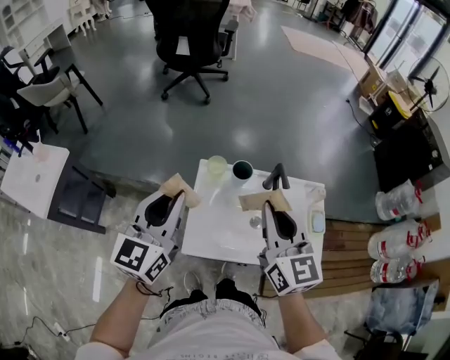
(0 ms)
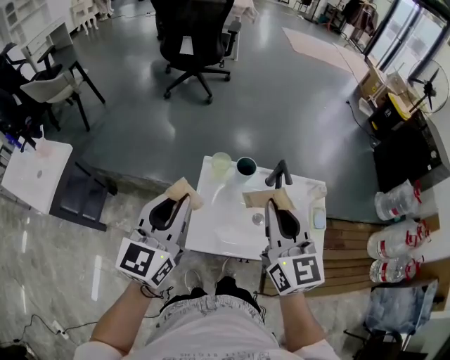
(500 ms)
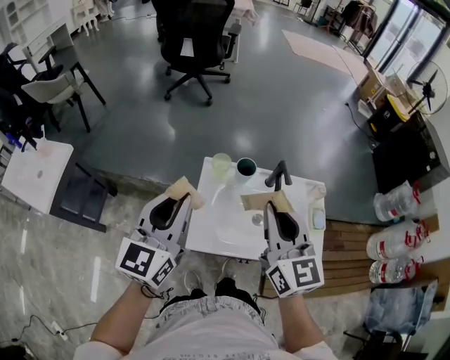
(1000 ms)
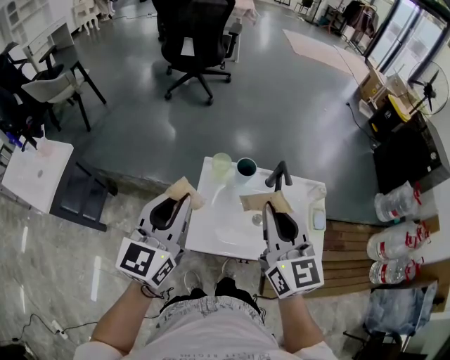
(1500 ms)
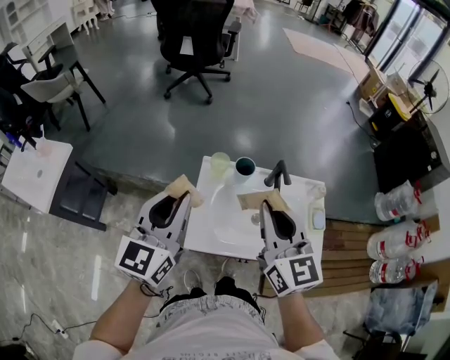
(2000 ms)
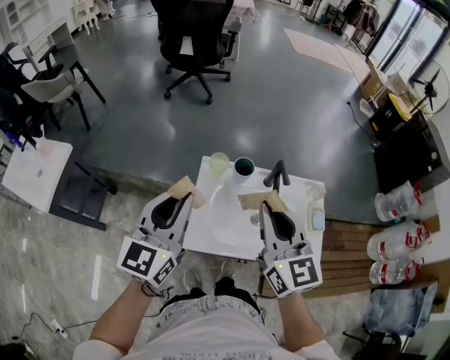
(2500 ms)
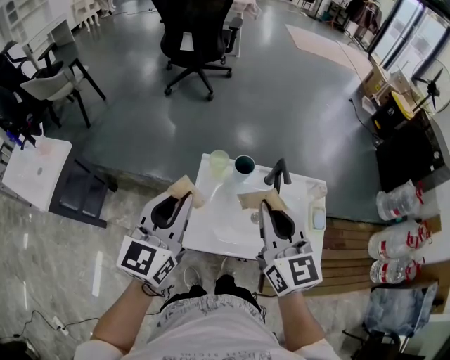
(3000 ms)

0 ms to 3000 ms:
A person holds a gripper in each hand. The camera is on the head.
0 ms to 3000 ms: The grippers make only small movements.

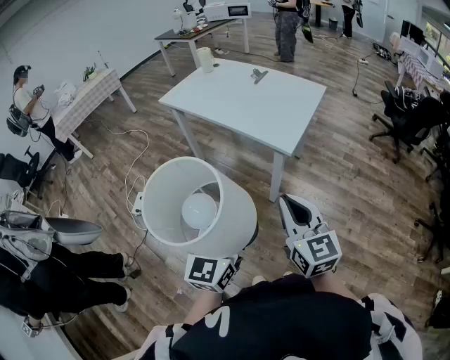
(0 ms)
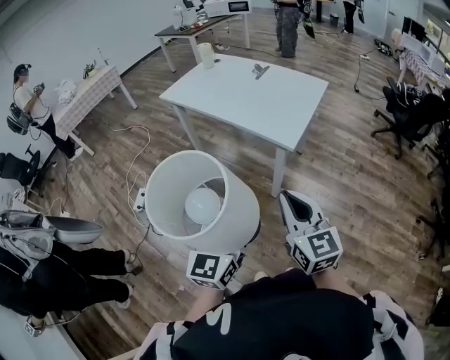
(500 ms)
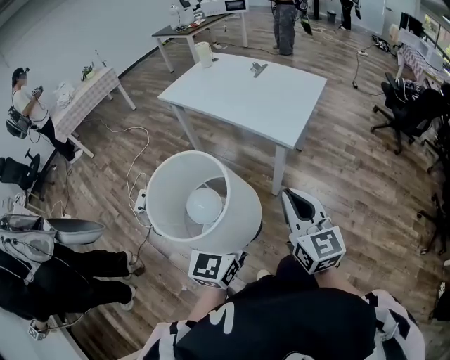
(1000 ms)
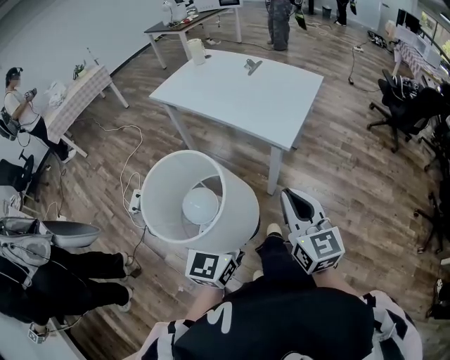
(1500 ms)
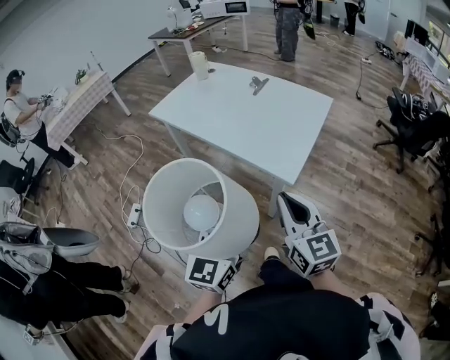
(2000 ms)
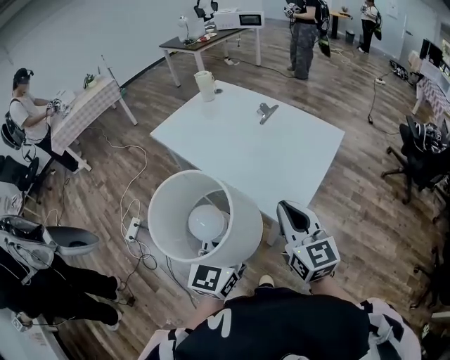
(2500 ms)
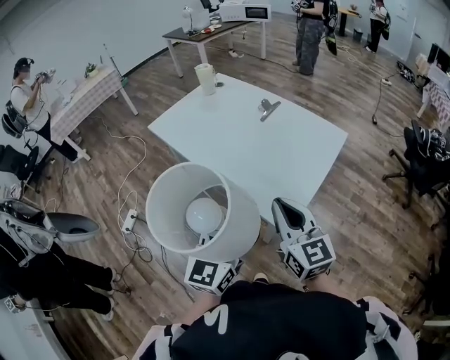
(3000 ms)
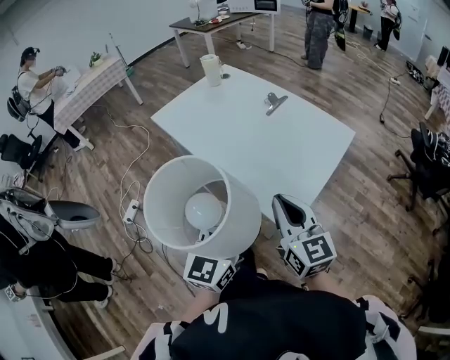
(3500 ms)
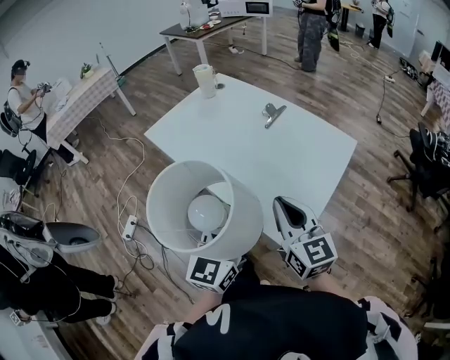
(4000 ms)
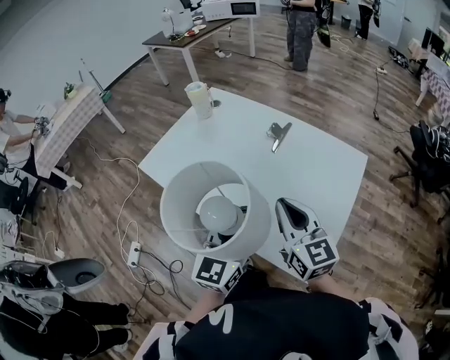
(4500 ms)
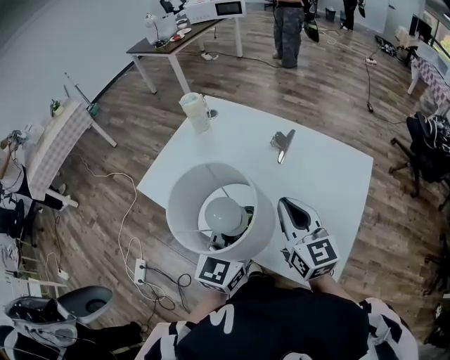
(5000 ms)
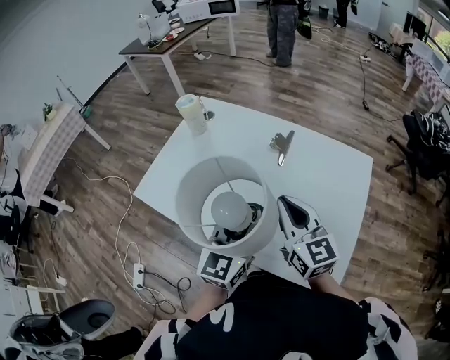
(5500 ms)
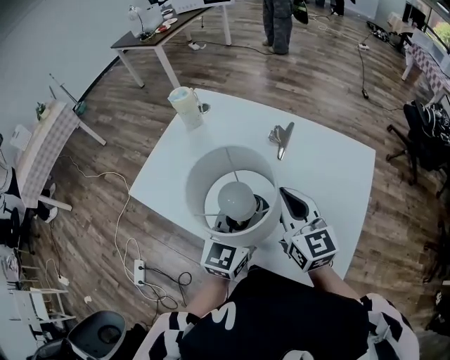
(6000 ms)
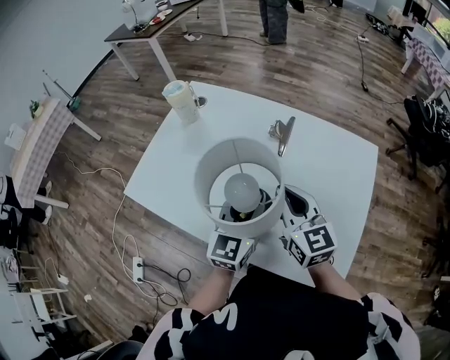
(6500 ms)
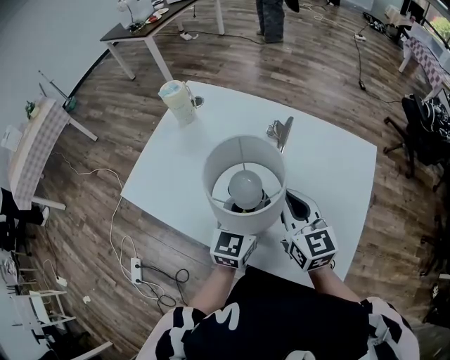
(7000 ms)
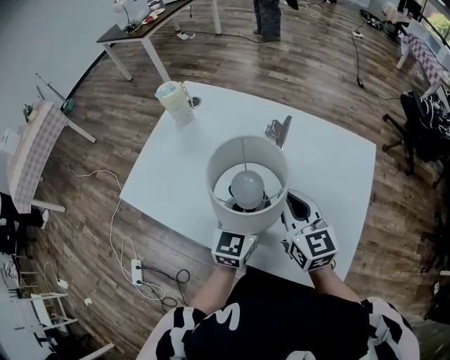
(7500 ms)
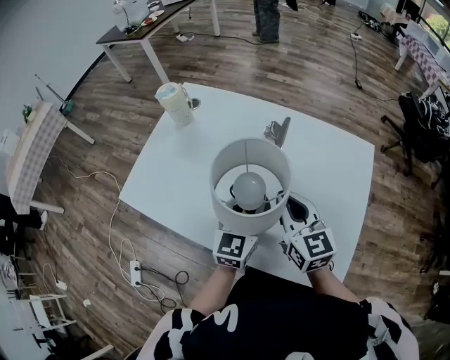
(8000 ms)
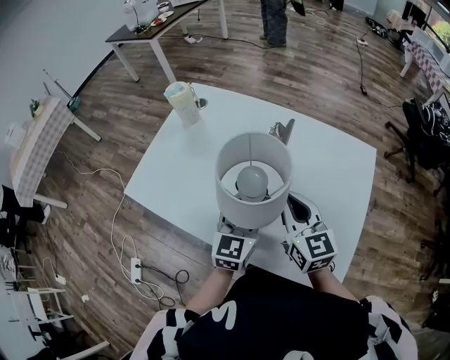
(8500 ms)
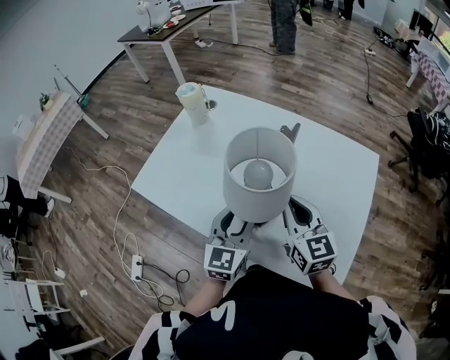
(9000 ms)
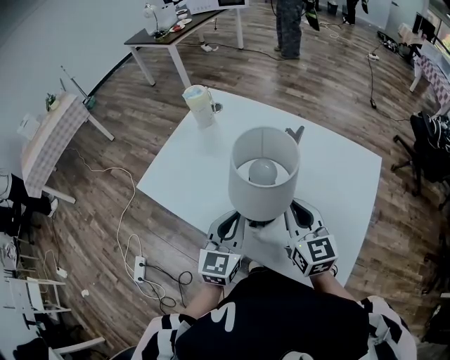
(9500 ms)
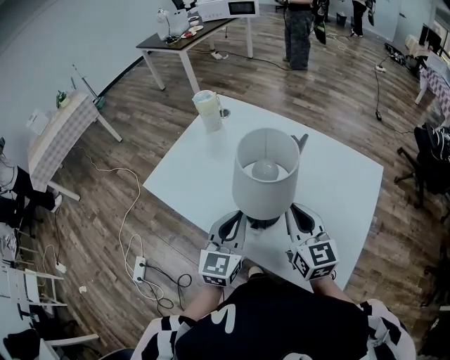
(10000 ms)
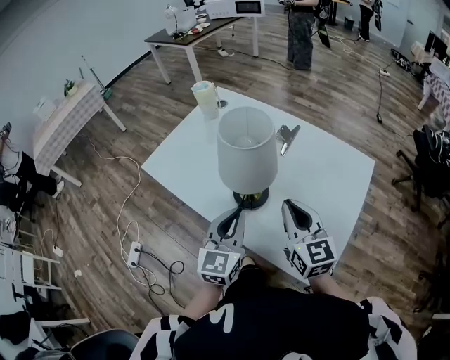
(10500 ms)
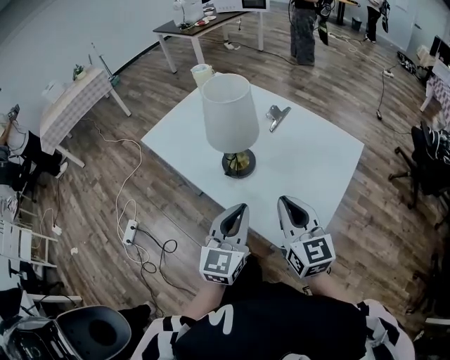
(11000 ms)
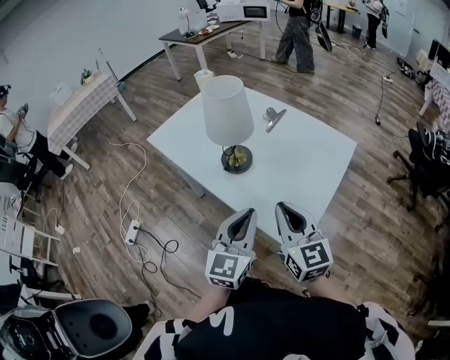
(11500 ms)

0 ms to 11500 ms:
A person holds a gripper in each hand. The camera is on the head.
0 ms to 2000 ms: Both grippers travel together forward, approximately 15 cm.
2000 ms to 4000 ms: The grippers both shift forward by some 25 cm.
4000 ms to 6000 ms: The left gripper heads forward, covering roughly 25 cm. Meanwhile the right gripper heads forward and to the left, covering about 25 cm.
6000 ms to 7500 ms: The left gripper moves downward, some 5 cm.
7500 ms to 9500 ms: The left gripper goes roughly 10 cm to the left and backward.
9500 ms to 11500 ms: The right gripper goes roughly 25 cm backward, while the left gripper is displaced backward and to the right by about 25 cm.

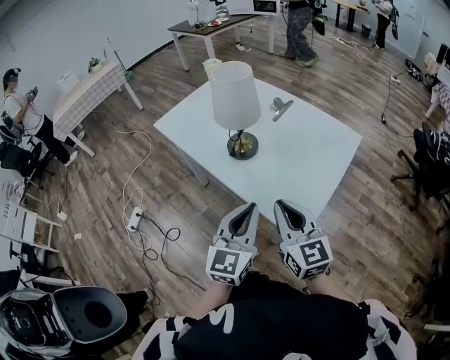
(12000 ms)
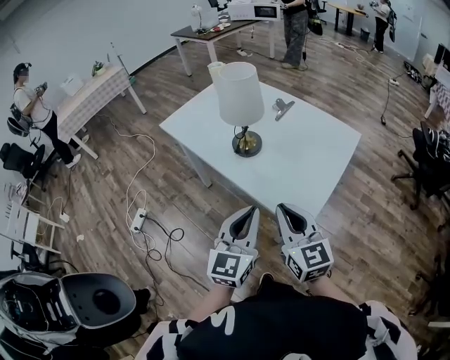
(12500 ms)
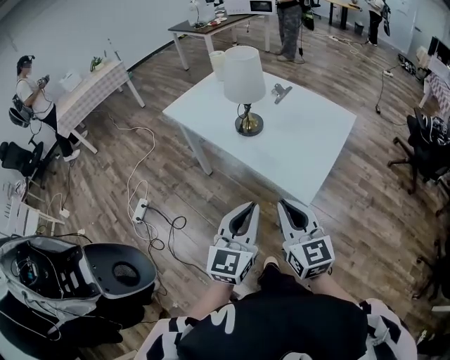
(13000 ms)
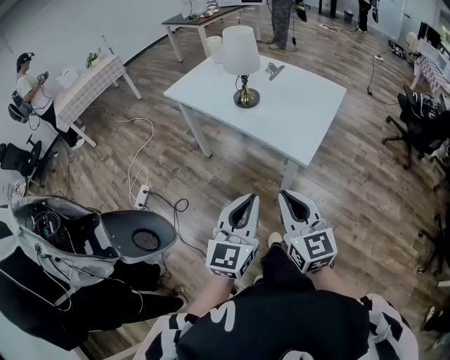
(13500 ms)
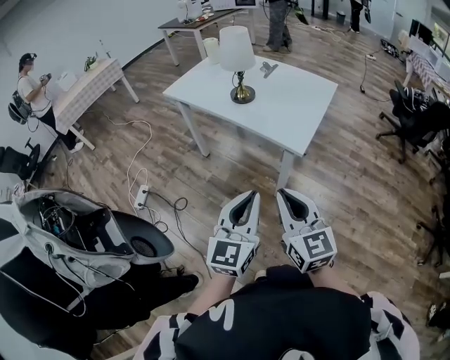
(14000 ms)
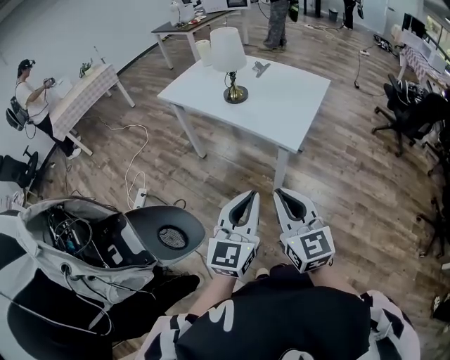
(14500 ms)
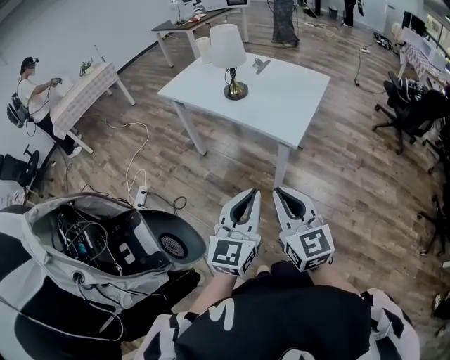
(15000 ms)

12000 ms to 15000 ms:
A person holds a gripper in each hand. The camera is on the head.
12000 ms to 13500 ms: Both grippers move backward, some 25 cm.
13500 ms to 15000 ms: Both grippers travel together backward, roughly 5 cm.

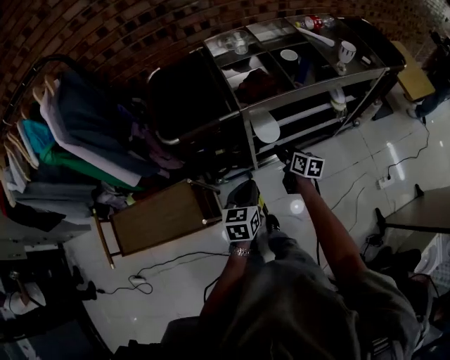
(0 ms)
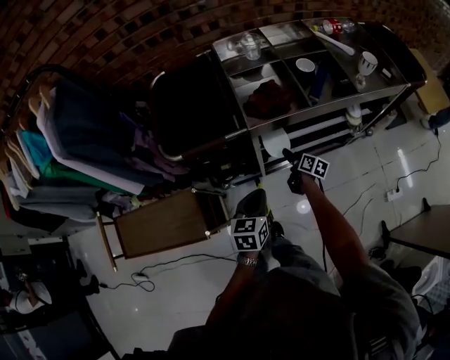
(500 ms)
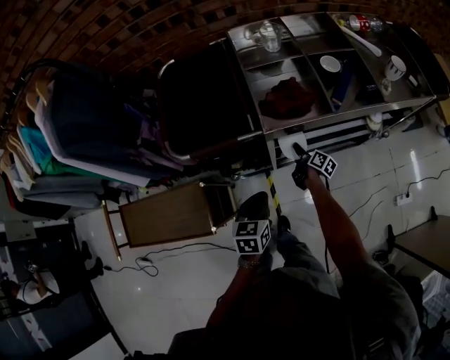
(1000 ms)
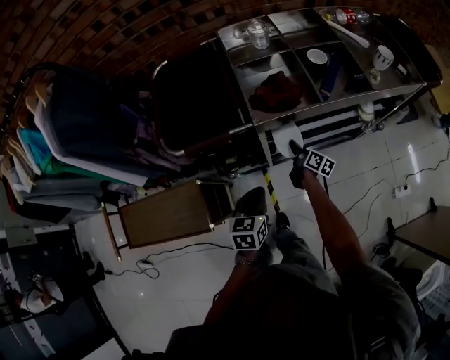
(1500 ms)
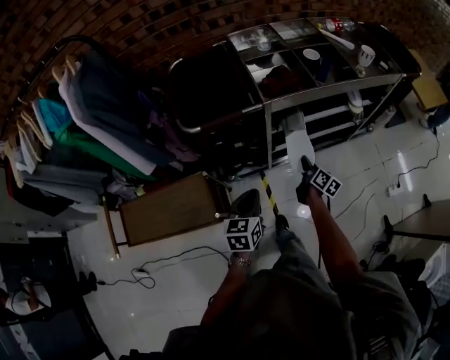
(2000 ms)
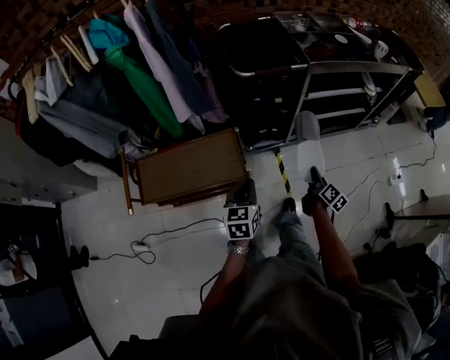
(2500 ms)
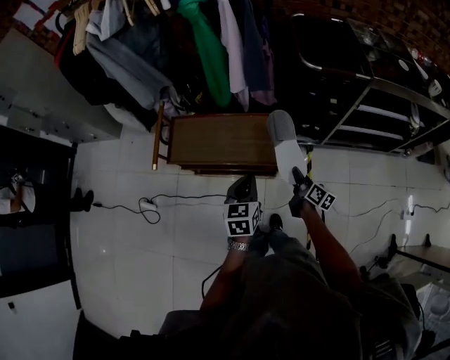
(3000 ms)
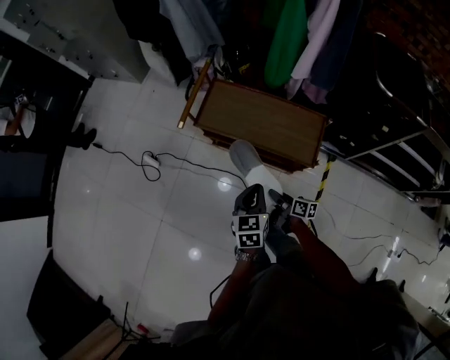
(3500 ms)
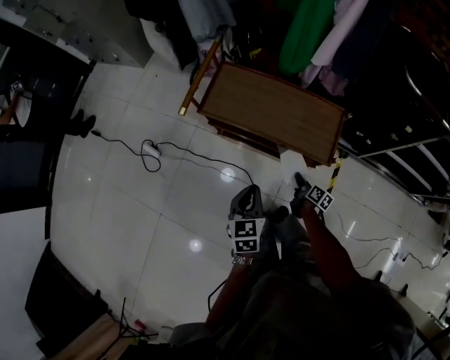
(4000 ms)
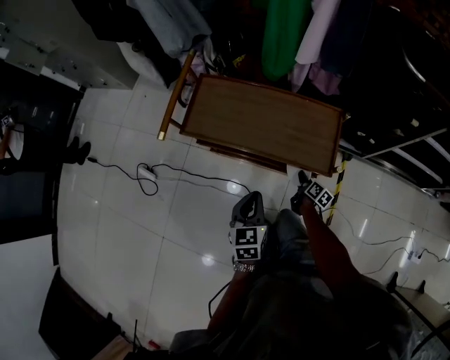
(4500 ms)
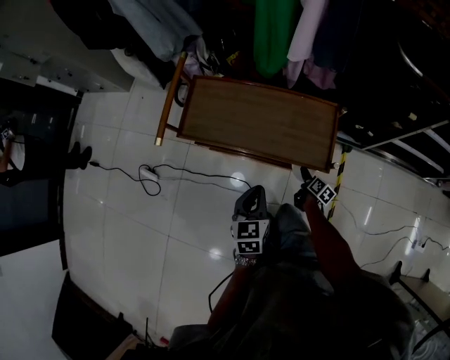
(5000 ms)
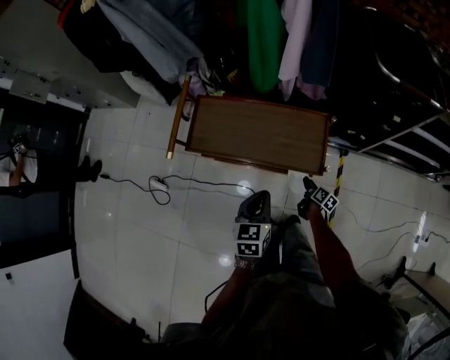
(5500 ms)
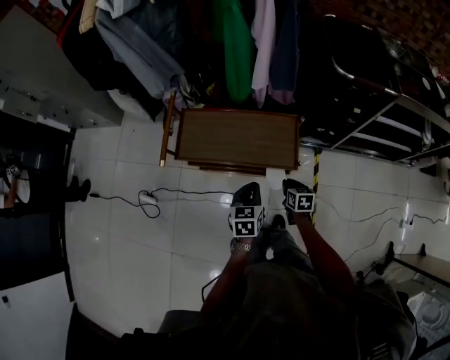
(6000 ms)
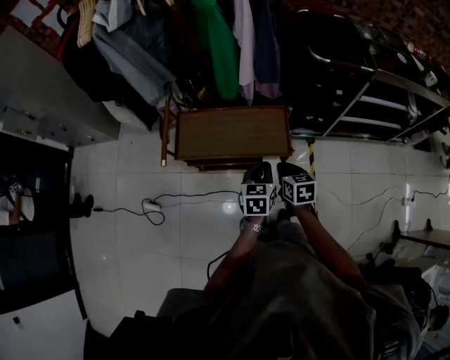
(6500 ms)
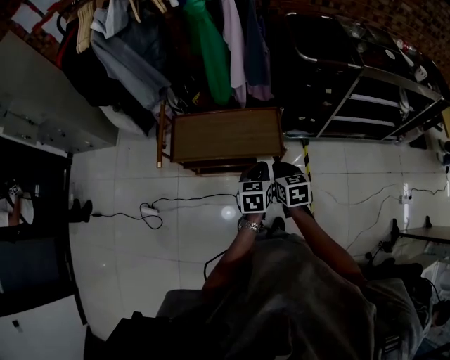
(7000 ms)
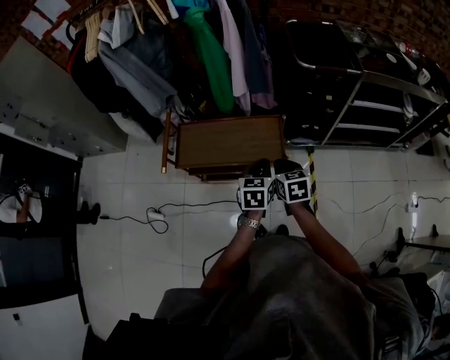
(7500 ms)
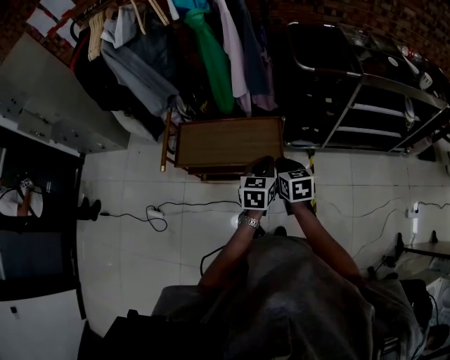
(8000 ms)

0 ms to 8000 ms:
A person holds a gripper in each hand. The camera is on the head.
0 ms to 2000 ms: The right gripper moves approximately 15 cm forward and comes back, and closes, while the left gripper travels to the left by roughly 5 cm.
2000 ms to 4000 ms: Both grippers are carried some 60 cm. The right gripper swivels approximately 40 degrees, while the left gripper swivels approximately 40 degrees.
4000 ms to 6000 ms: The right gripper goes about 15 cm upward, rotates approximately 30 degrees, and opens, then closes once more. Meanwhile the left gripper moves to the right, forward and upward, approximately 15 cm.
6000 ms to 8000 ms: The left gripper moves upward and to the right, approximately 20 cm; the right gripper heads upward, covering some 25 cm.

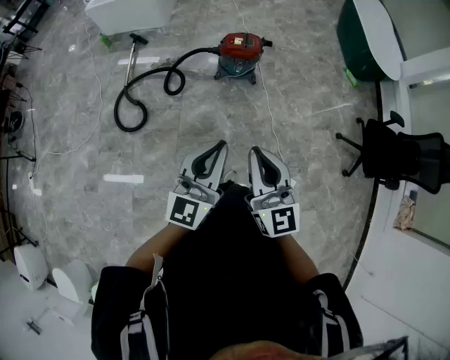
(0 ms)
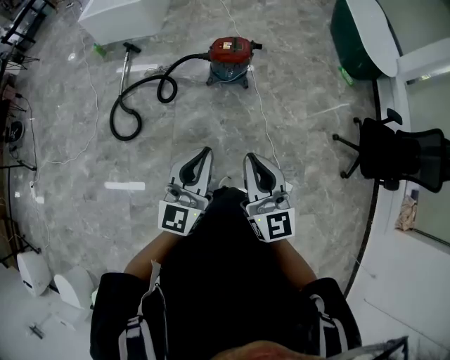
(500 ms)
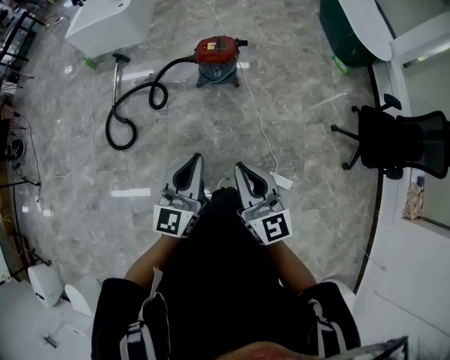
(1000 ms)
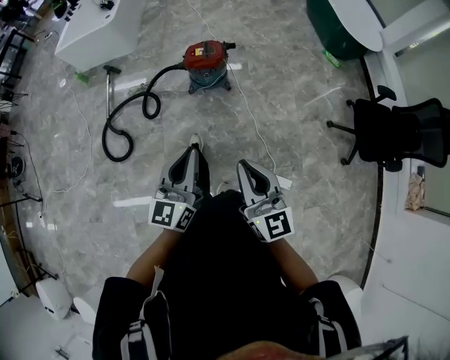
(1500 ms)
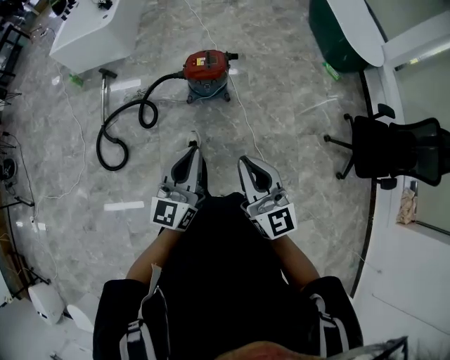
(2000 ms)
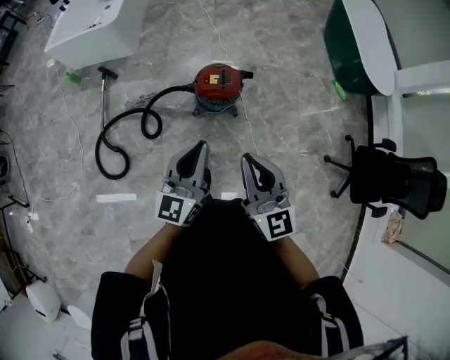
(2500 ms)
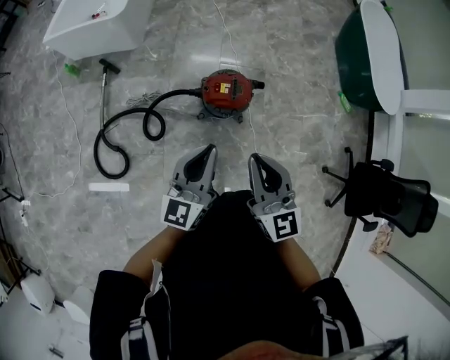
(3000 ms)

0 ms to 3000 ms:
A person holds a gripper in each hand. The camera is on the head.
0 ms to 1500 ms: The right gripper travels to the right by about 15 cm, while the left gripper shifts about 15 cm to the right, forward and downward.
1500 ms to 3000 ms: The pair of grippers is taken forward, about 40 cm.
